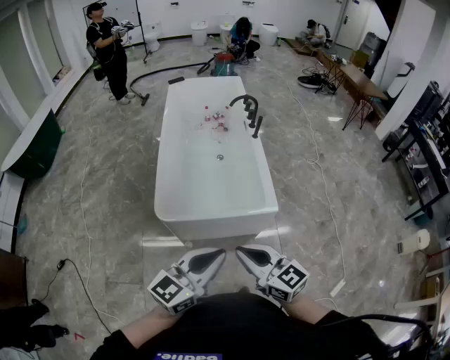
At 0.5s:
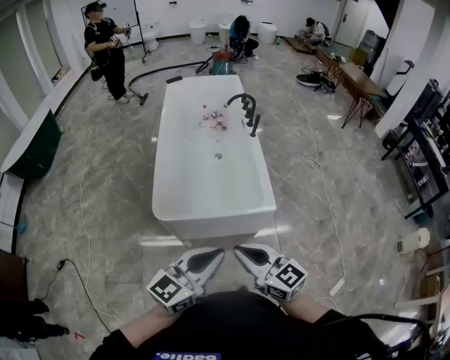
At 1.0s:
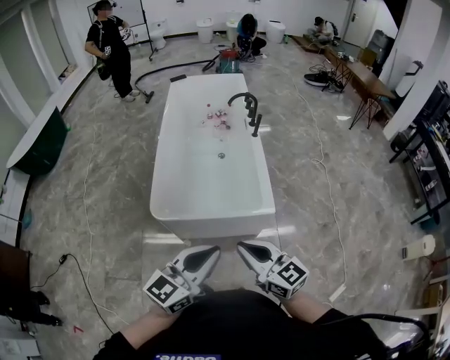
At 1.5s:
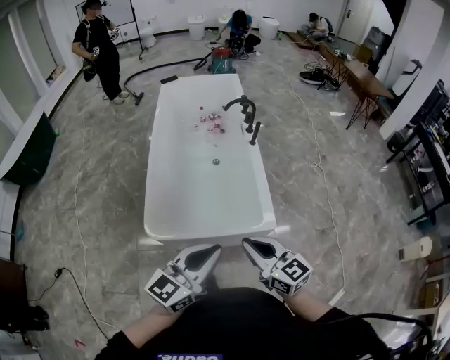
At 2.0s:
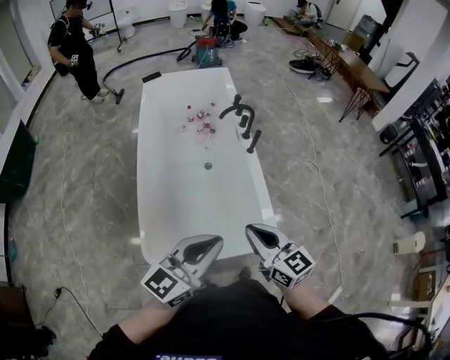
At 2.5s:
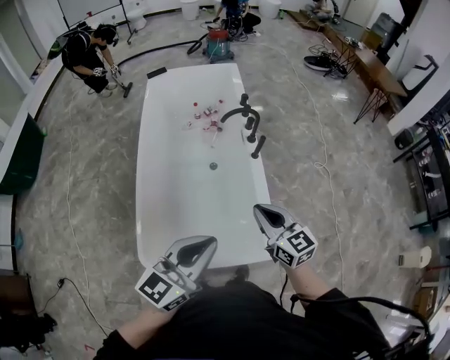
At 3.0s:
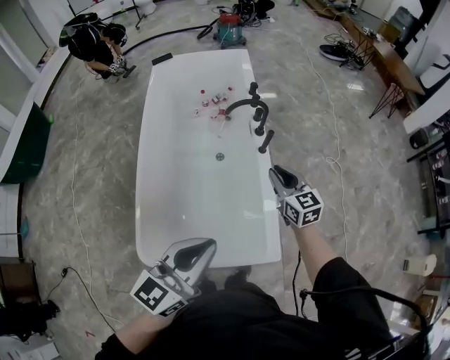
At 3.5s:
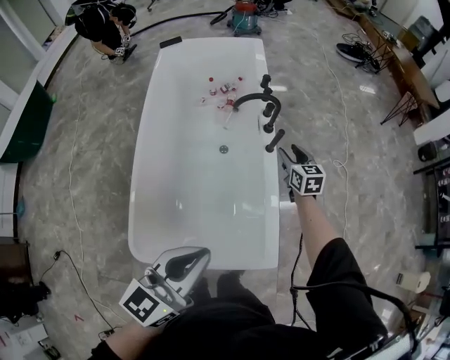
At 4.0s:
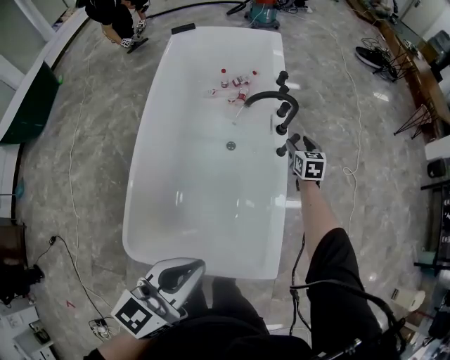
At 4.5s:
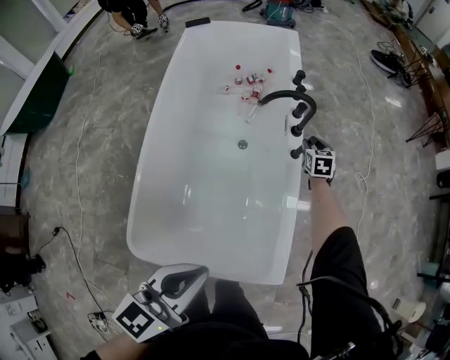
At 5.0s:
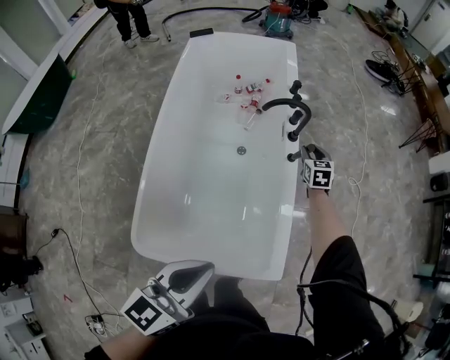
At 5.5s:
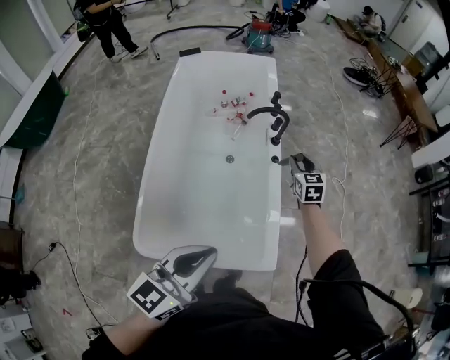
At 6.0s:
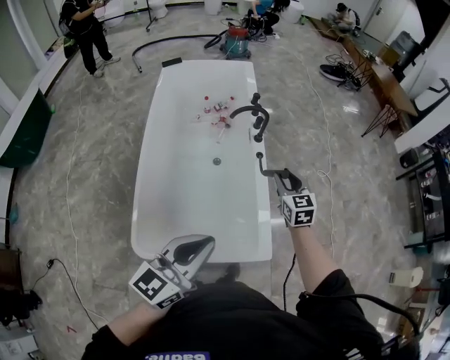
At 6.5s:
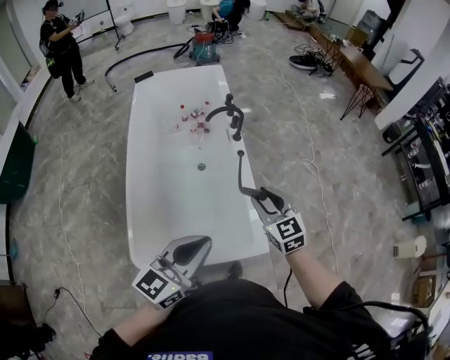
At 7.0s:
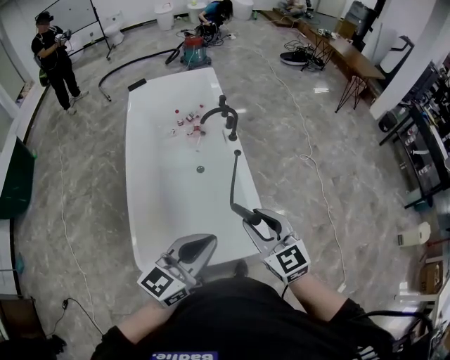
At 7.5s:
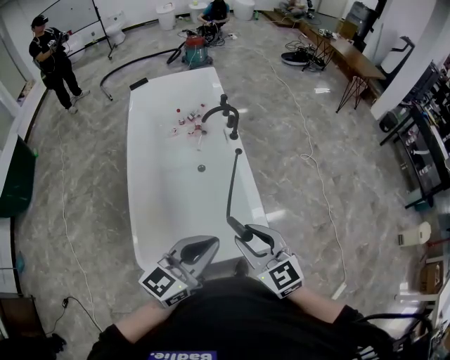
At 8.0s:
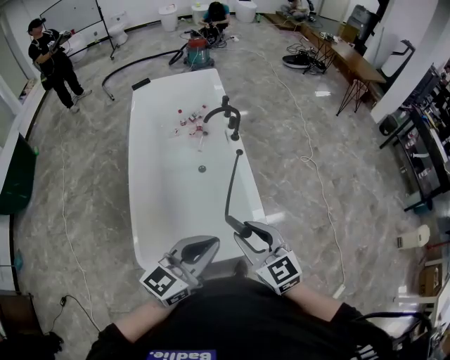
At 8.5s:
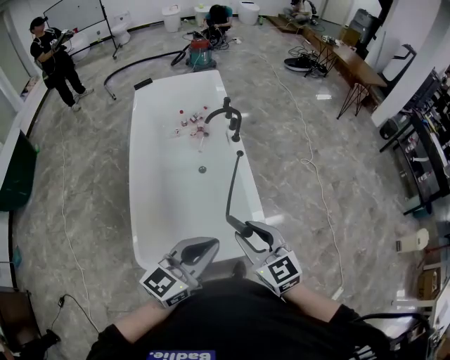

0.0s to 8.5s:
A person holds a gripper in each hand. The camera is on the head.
0.0s to 2.0s: Both grippers travel together forward, roughly 40 cm.
2.0s to 4.0s: The left gripper travels forward and downward by approximately 20 cm, and changes its angle by approximately 20 degrees. Meanwhile the right gripper is displaced forward and downward by some 60 cm, turns by roughly 30 degrees, and opens up.
4.0s to 6.5s: The right gripper travels backward and upward by some 50 cm, and closes up; the left gripper shifts about 15 cm backward and upward.
6.5s to 8.5s: The right gripper moves backward, some 15 cm.

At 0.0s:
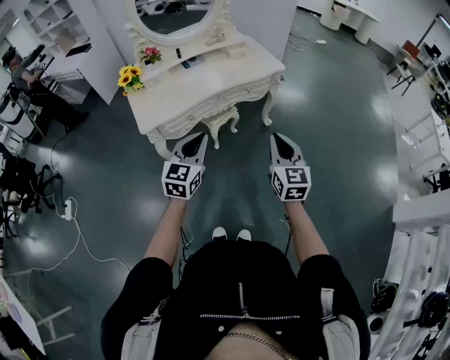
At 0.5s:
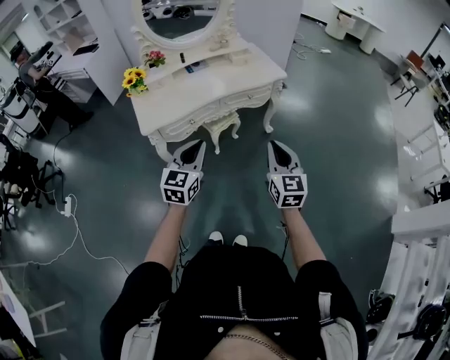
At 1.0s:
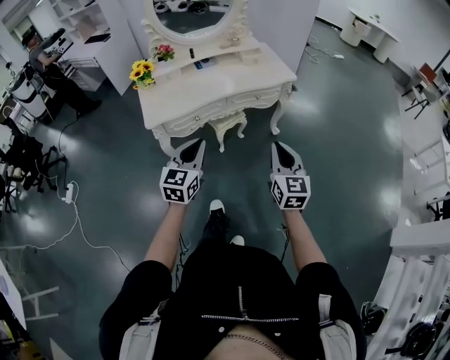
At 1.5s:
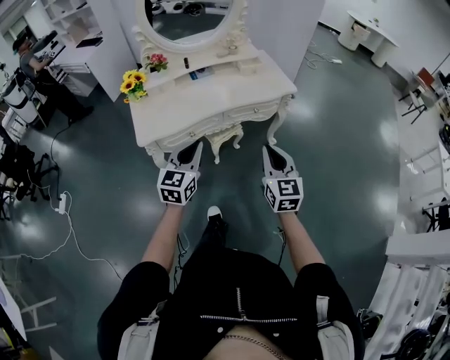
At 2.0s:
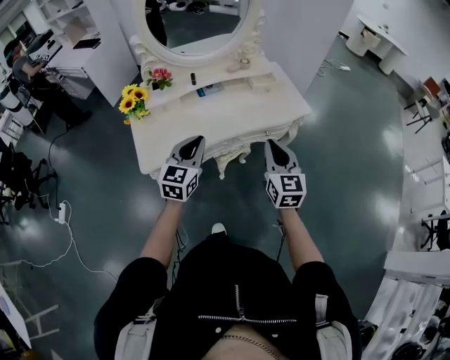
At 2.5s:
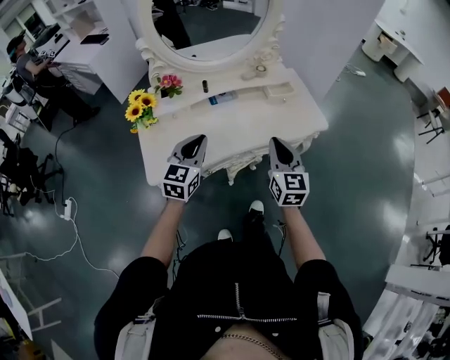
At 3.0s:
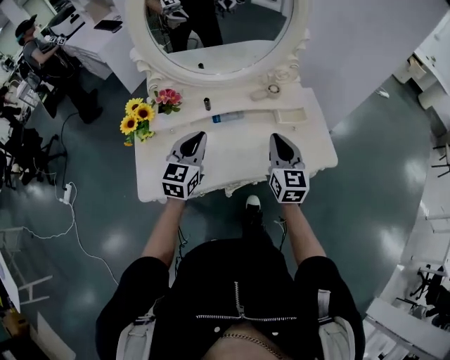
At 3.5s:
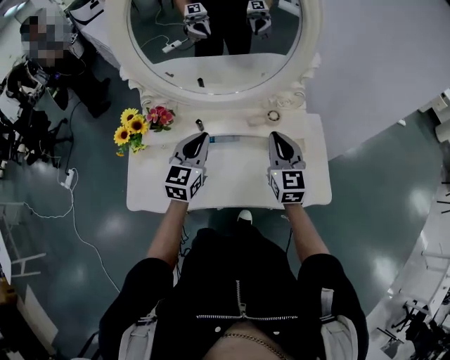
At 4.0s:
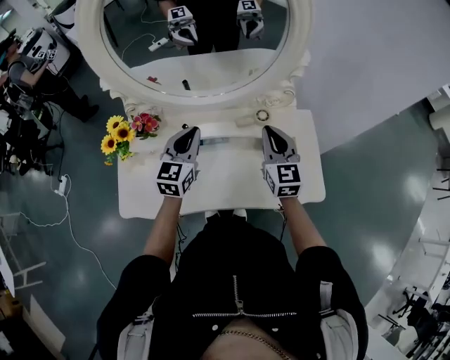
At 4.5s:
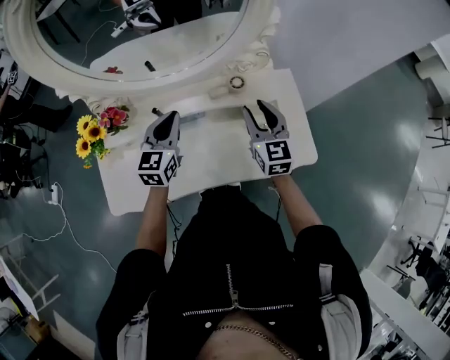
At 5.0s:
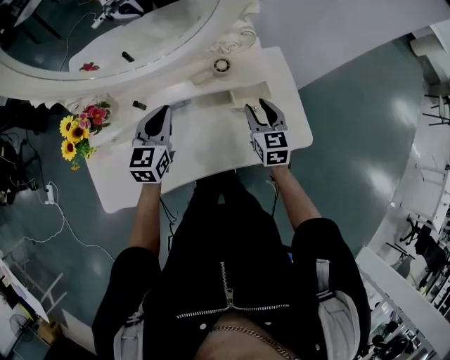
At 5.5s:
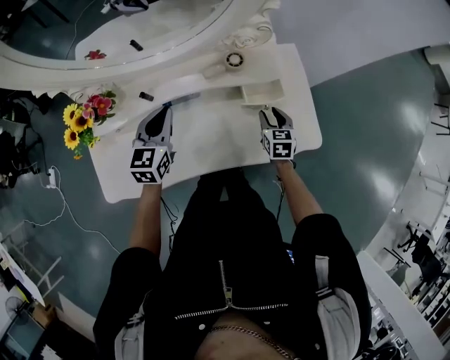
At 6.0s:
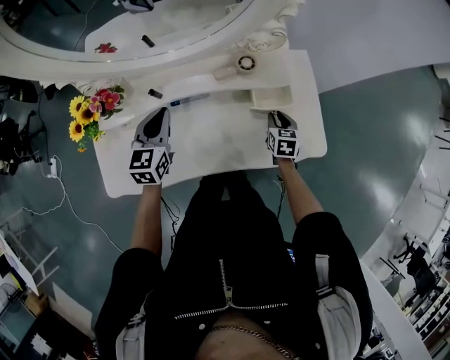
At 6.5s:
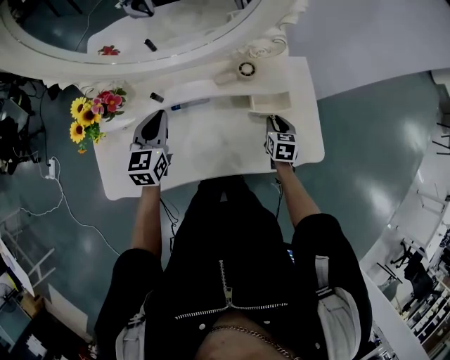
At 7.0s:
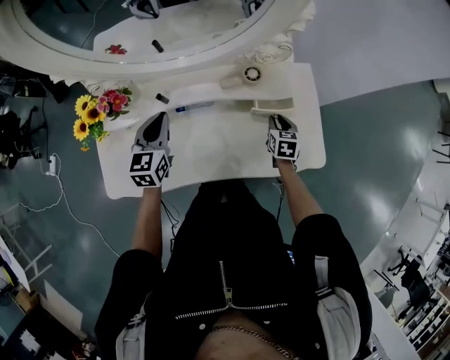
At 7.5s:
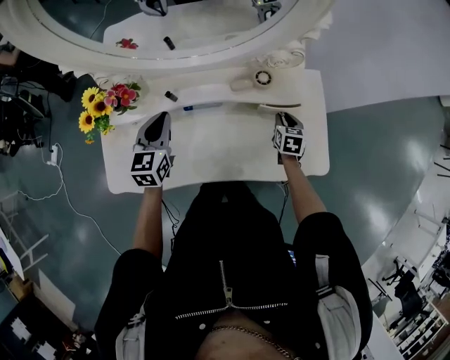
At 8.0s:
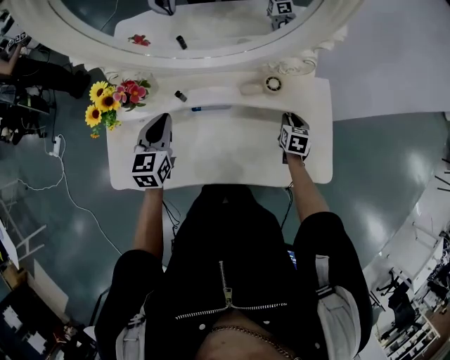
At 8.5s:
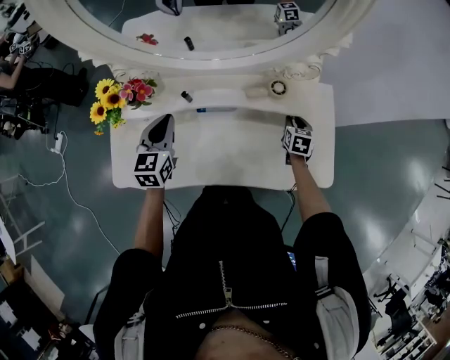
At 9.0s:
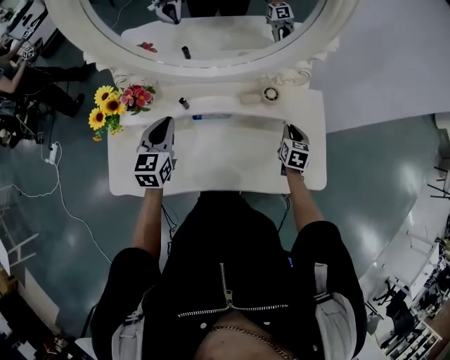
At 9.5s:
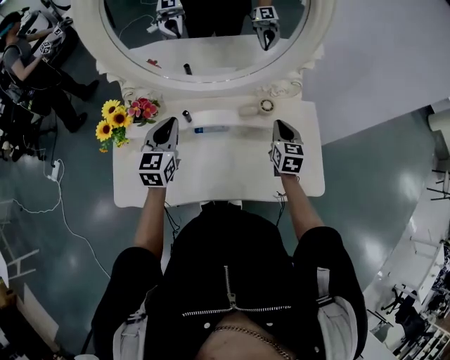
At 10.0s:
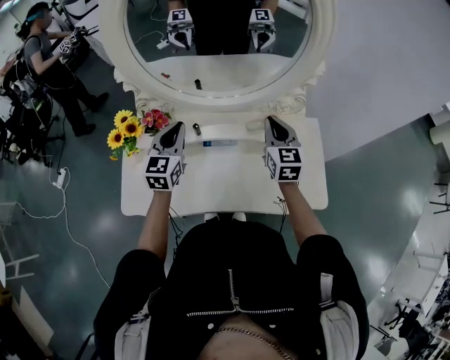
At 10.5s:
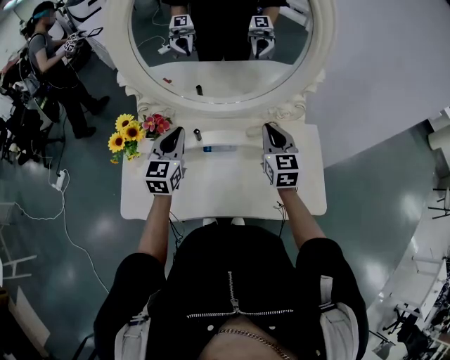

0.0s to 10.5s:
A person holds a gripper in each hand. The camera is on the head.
0.0s to 2.0s: The grippers both shift forward by about 30 cm.
2.0s to 4.0s: Both grippers move forward, roughly 40 cm. The left gripper swivels roughly 20 degrees; the right gripper turns by approximately 20 degrees.
4.0s to 6.5s: The right gripper heads downward and to the right, covering some 30 cm, tips its fingers downward by about 40 degrees, and opens. Meanwhile the left gripper moves downward, about 10 cm.
6.5s to 8.5s: The left gripper moves to the left, roughly 5 cm; the right gripper goes some 10 cm forward.
8.5s to 10.5s: The right gripper is displaced upward and to the left by roughly 30 cm, tips its fingers upward by approximately 30 degrees, and closes up, while the left gripper travels upward by about 10 cm.

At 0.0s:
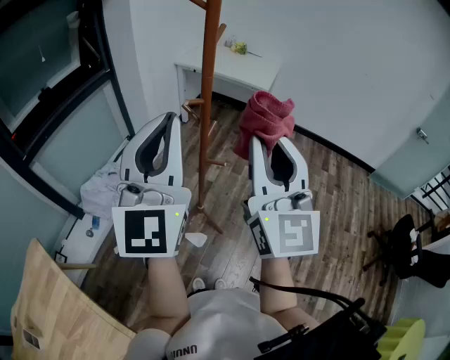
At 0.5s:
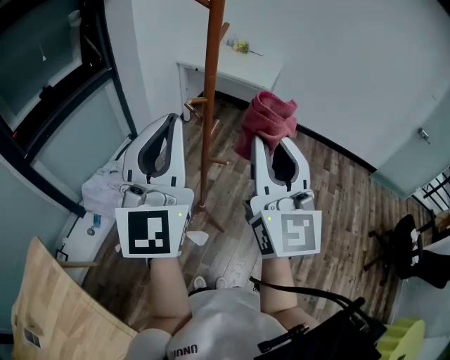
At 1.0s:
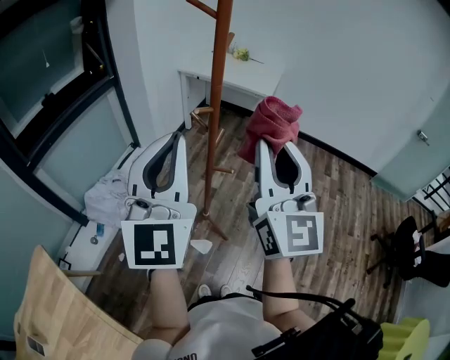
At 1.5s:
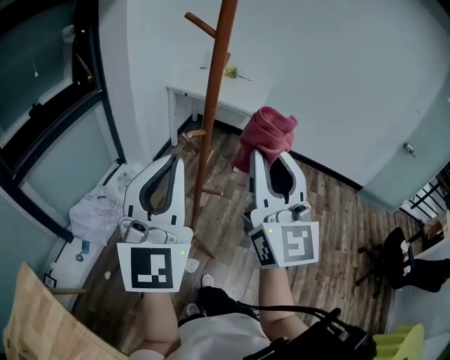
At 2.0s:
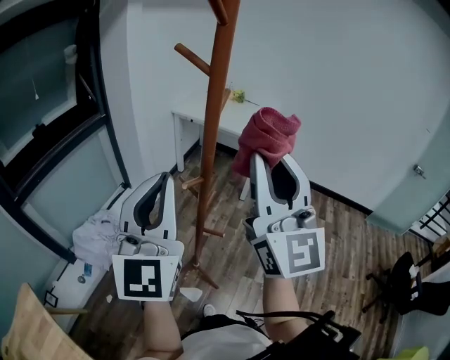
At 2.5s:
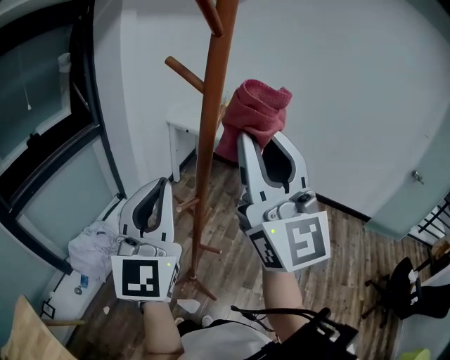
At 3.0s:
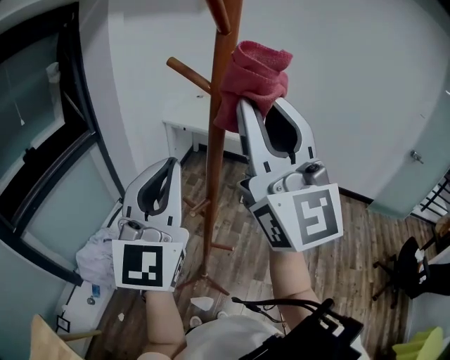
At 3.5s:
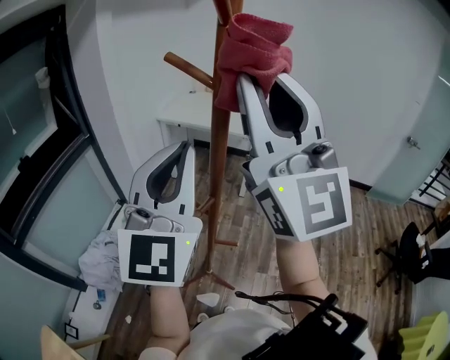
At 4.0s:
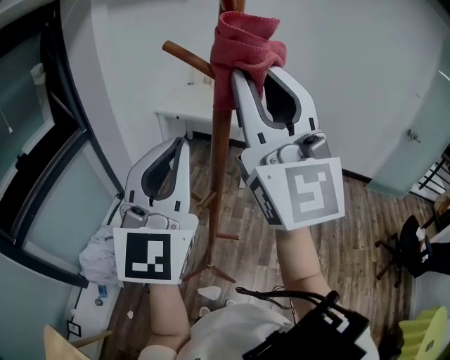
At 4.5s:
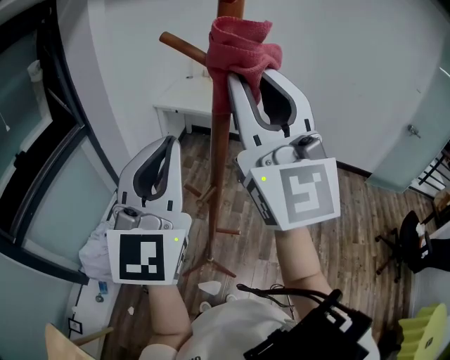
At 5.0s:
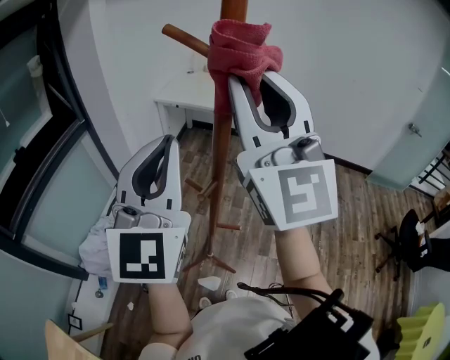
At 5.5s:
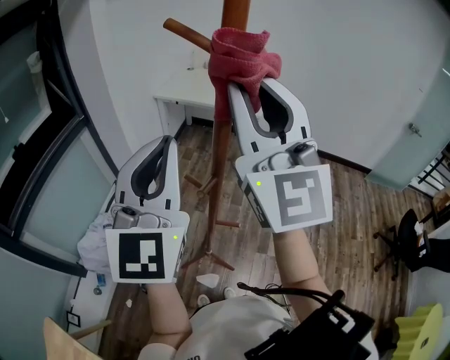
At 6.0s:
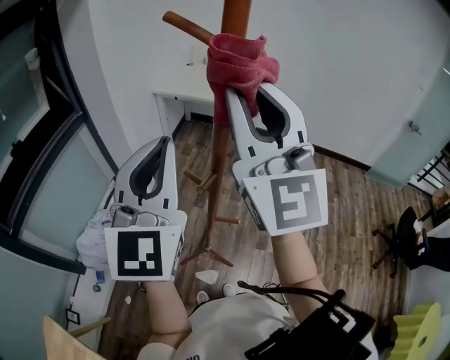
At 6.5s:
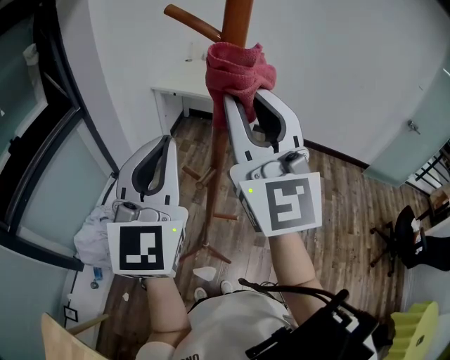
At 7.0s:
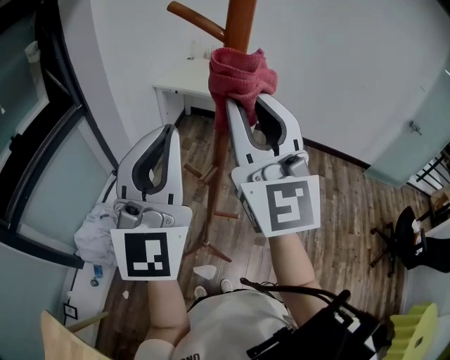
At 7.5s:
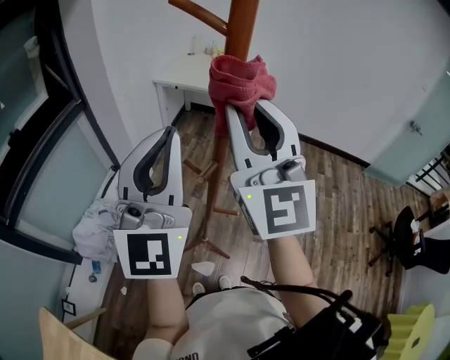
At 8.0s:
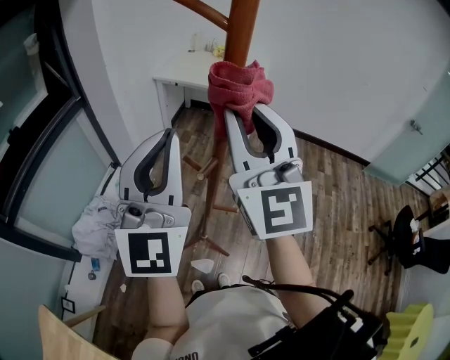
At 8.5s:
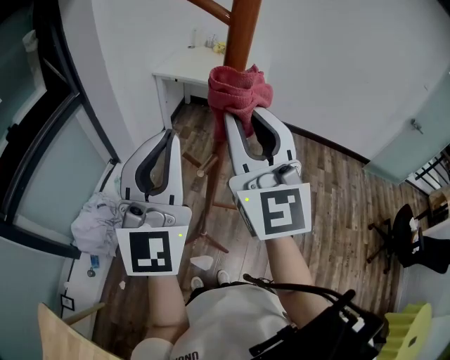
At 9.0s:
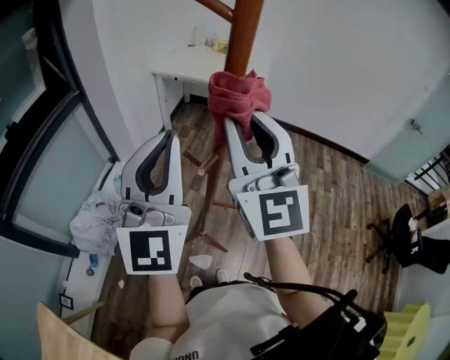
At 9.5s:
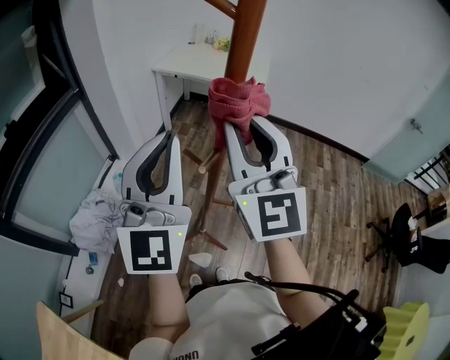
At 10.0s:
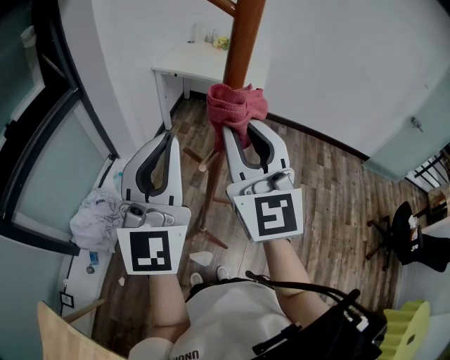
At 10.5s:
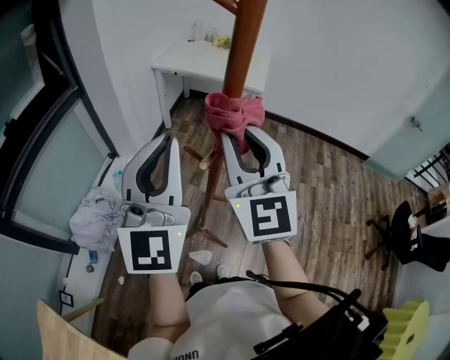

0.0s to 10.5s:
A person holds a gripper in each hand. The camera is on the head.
0.0s to 2.0s: The right gripper goes roughly 10 cm forward and upward. Meanwhile the left gripper is displaced forward by about 10 cm.
2.0s to 4.0s: The left gripper heads forward, covering roughly 5 cm. The right gripper travels upward, forward and to the left by approximately 15 cm.
4.0s to 6.5s: The right gripper heads downward, covering some 5 cm.
6.5s to 8.5s: The right gripper goes some 5 cm downward.
8.5s to 10.5s: The right gripper heads downward, covering approximately 5 cm.
